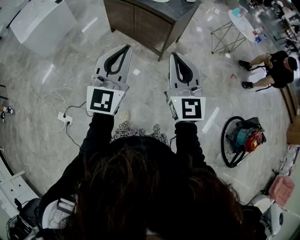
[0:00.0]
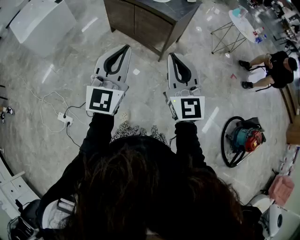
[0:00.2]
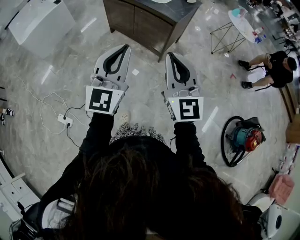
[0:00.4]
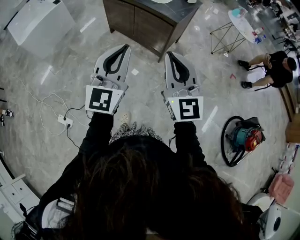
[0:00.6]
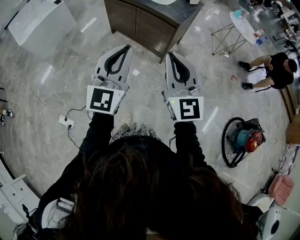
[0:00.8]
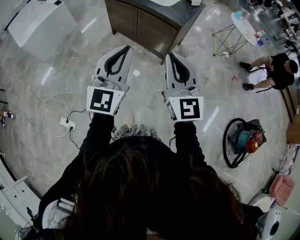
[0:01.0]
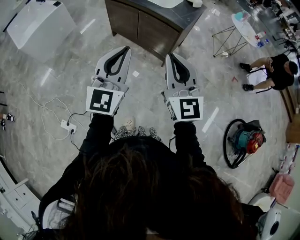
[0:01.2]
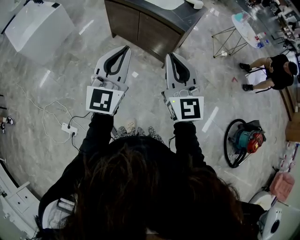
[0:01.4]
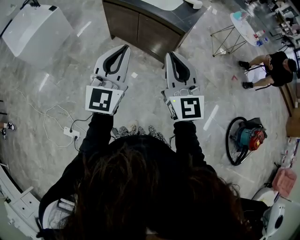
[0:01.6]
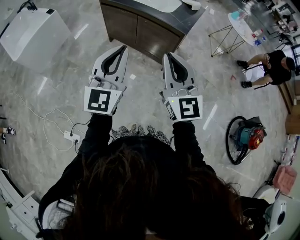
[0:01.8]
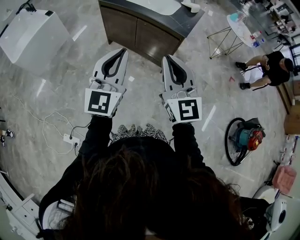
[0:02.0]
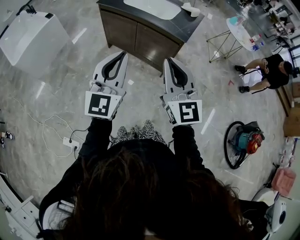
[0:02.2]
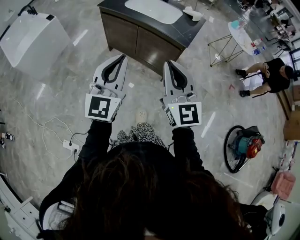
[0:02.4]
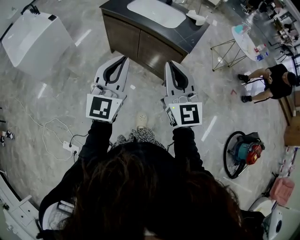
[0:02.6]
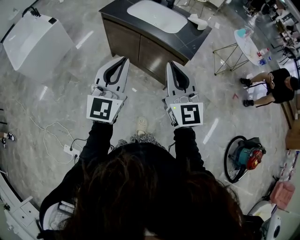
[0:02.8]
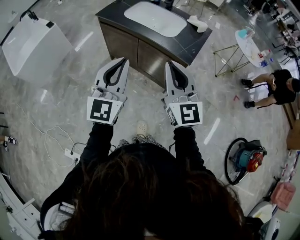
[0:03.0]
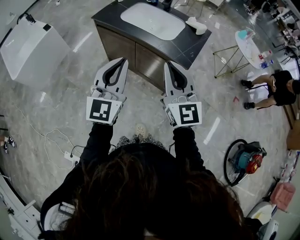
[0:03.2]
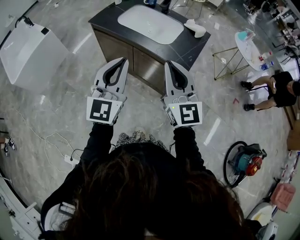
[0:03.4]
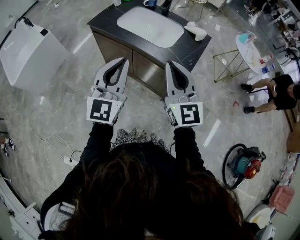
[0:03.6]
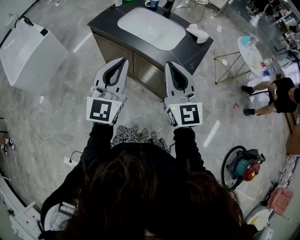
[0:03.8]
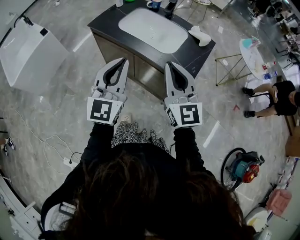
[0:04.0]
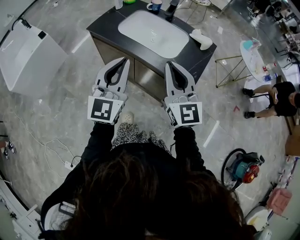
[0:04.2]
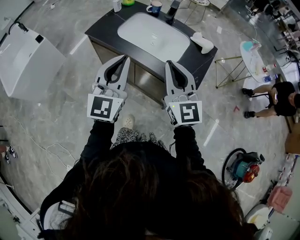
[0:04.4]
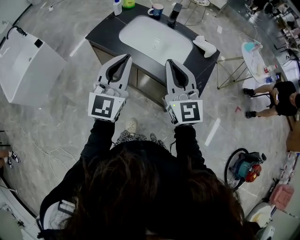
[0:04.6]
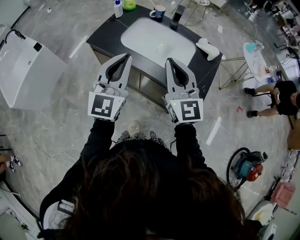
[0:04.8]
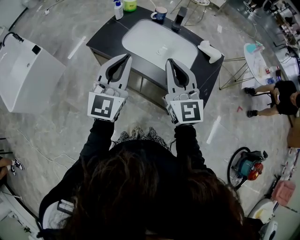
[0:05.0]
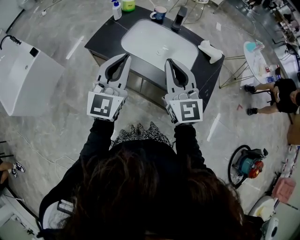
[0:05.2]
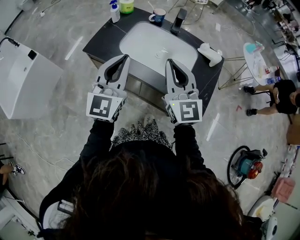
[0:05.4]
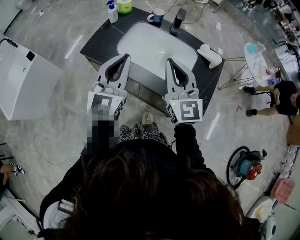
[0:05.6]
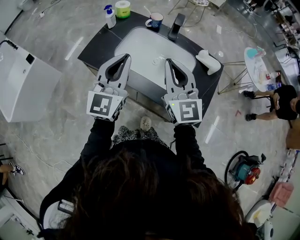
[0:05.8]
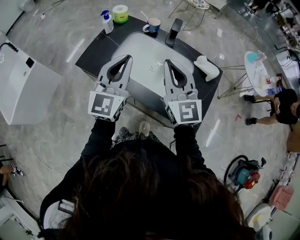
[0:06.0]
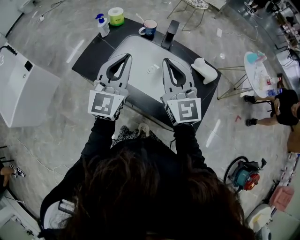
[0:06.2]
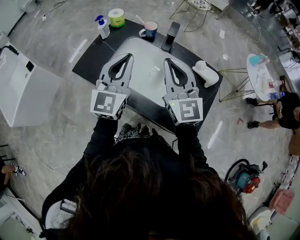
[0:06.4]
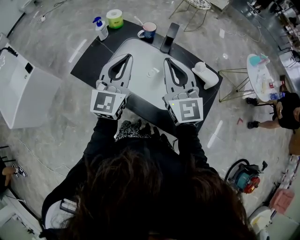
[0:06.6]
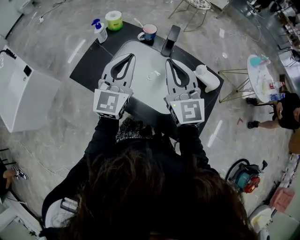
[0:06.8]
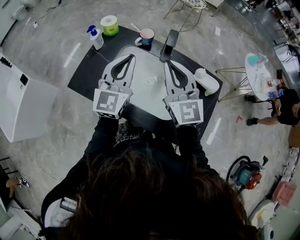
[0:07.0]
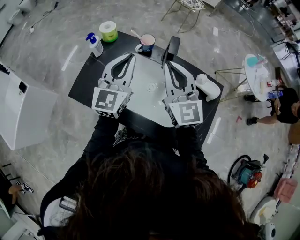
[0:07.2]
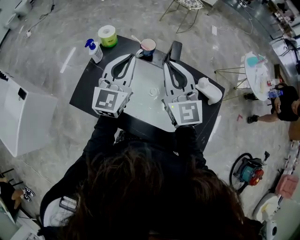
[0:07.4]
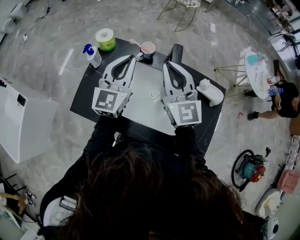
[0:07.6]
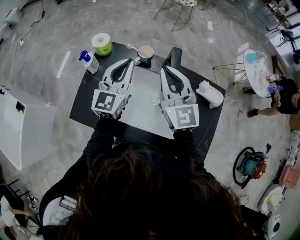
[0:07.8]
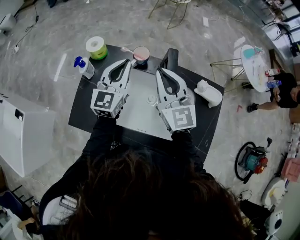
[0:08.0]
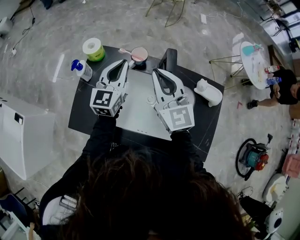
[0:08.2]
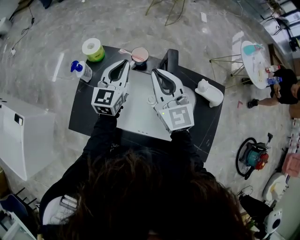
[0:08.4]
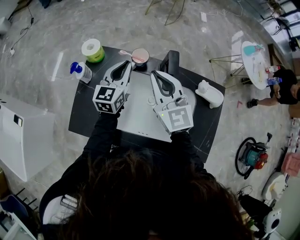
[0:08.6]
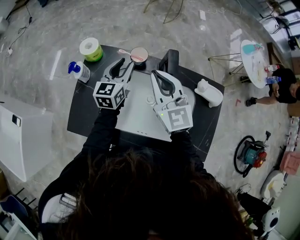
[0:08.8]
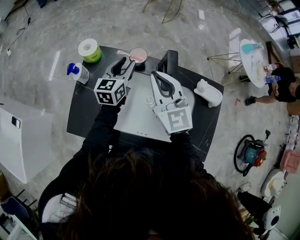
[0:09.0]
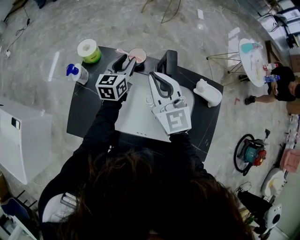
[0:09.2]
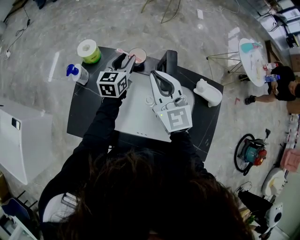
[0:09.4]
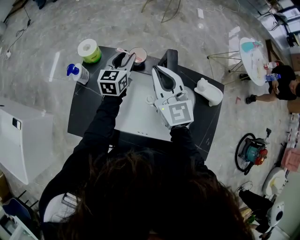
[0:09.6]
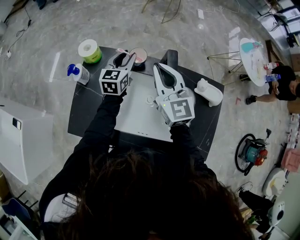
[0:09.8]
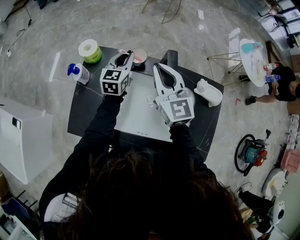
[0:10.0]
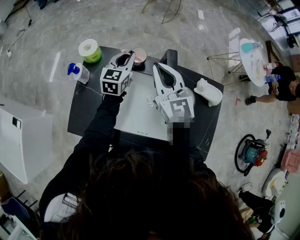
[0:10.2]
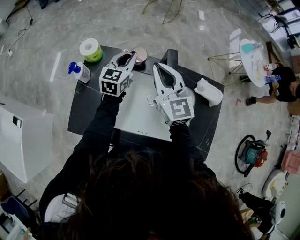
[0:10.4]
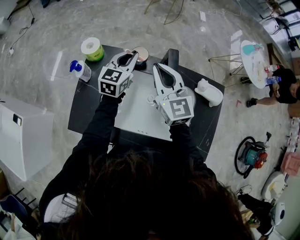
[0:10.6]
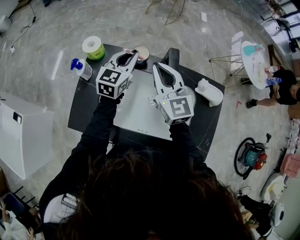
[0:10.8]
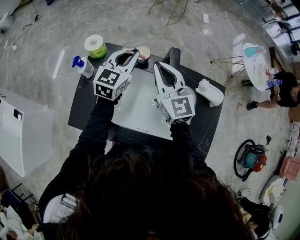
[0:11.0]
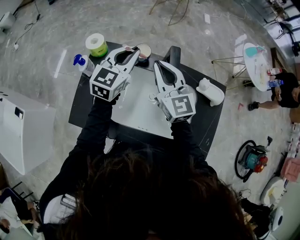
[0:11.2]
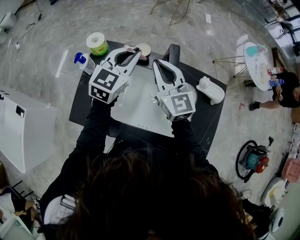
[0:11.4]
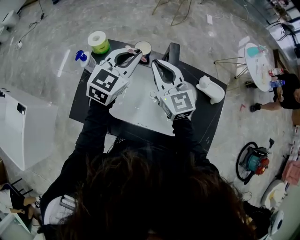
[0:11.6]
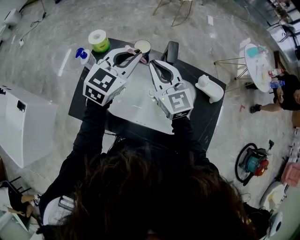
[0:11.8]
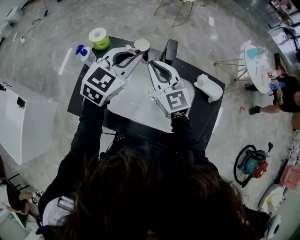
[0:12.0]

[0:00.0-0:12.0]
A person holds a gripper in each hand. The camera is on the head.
0:00.0 to 0:01.6: The right gripper travels to the left and forward by roughly 15 cm; the left gripper travels forward and to the left by about 15 cm.
0:01.6 to 0:03.0: The two grippers go approximately 20 cm forward.
0:03.0 to 0:04.4: The grippers both shift forward by approximately 25 cm.
0:04.4 to 0:06.0: Both grippers travel together forward, approximately 20 cm.
0:06.0 to 0:07.6: The grippers both shift forward by some 20 cm.
0:07.6 to 0:09.0: The left gripper is displaced downward and forward by roughly 20 cm, swivels about 30 degrees, and opens, while the right gripper moves downward, roughly 5 cm.
0:09.0 to 0:10.4: The left gripper closes its fingers.
0:10.4 to 0:12.0: The right gripper shifts roughly 5 cm backward. The left gripper moves upward and backward, about 20 cm, and changes its angle by about 20 degrees.

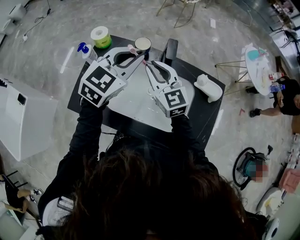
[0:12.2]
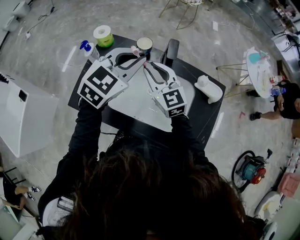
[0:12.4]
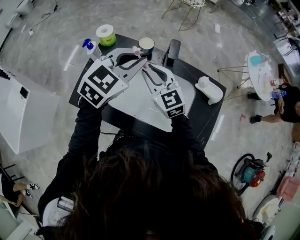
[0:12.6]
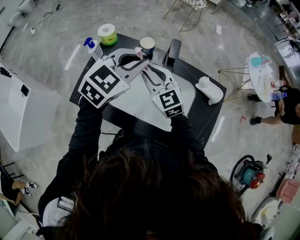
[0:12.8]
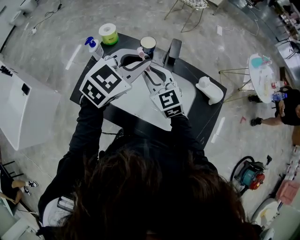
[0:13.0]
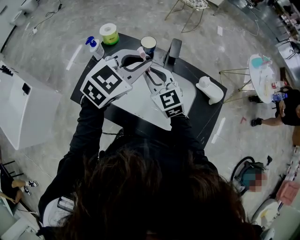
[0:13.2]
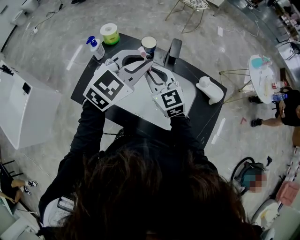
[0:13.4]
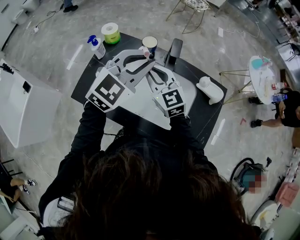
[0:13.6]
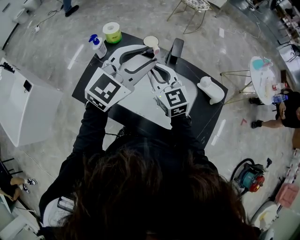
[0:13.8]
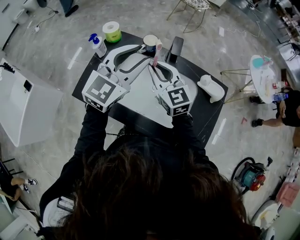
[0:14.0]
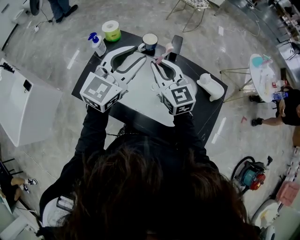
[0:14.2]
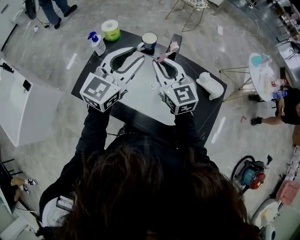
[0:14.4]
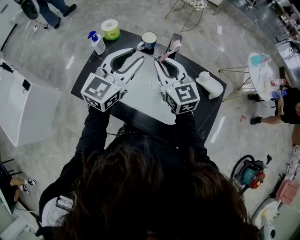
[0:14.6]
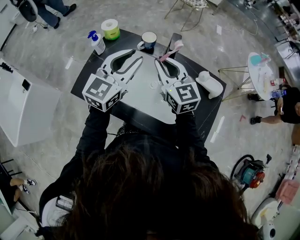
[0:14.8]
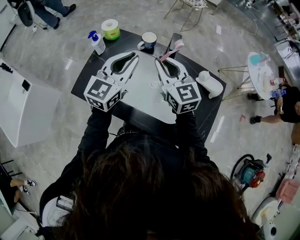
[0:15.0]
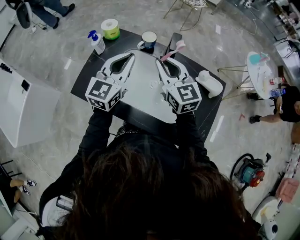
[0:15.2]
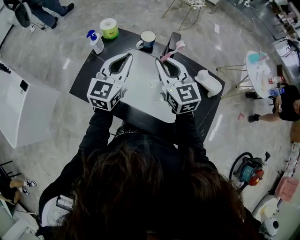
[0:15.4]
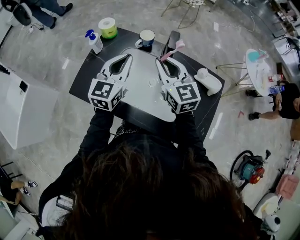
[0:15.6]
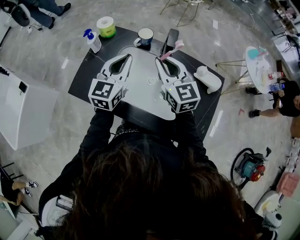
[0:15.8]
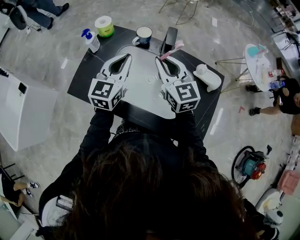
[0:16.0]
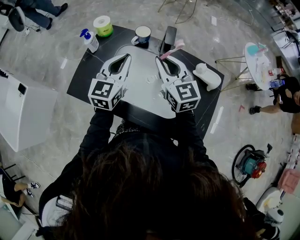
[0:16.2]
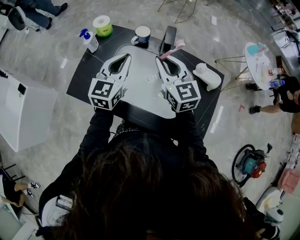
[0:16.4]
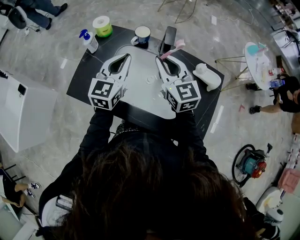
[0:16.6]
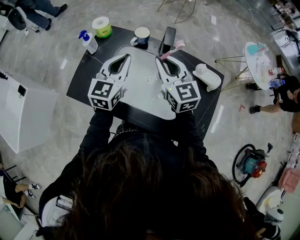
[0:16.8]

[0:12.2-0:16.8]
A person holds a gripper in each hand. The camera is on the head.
0:12.2 to 0:13.8: The left gripper is displaced backward by some 5 cm, and opens its fingers.
0:13.8 to 0:15.2: The left gripper goes about 10 cm downward and to the left, rotates about 20 degrees, and closes its fingers.
0:15.2 to 0:16.8: The grippers move only a little.

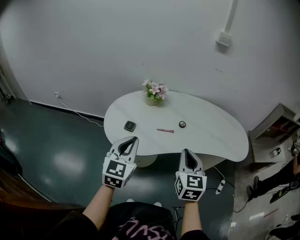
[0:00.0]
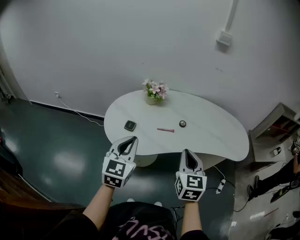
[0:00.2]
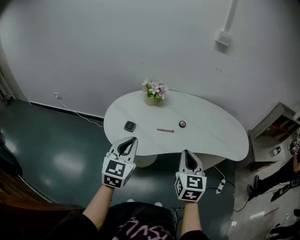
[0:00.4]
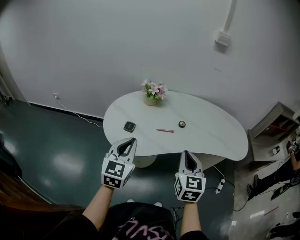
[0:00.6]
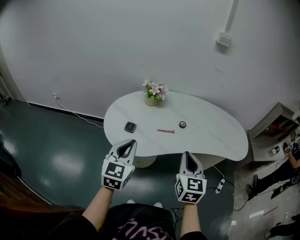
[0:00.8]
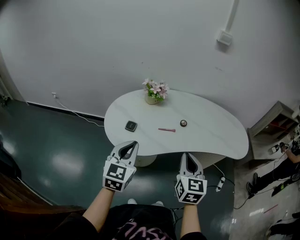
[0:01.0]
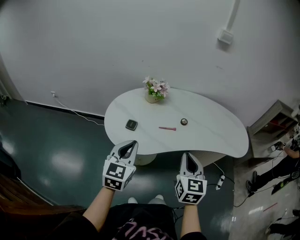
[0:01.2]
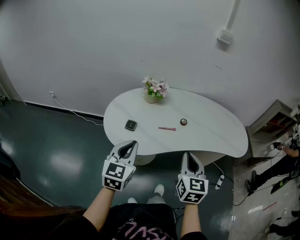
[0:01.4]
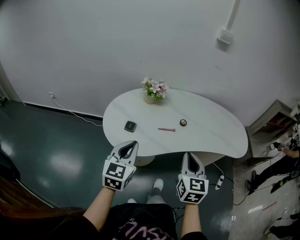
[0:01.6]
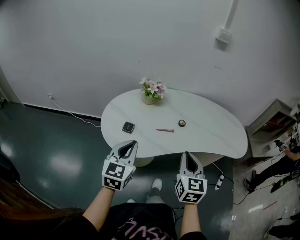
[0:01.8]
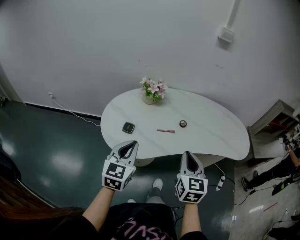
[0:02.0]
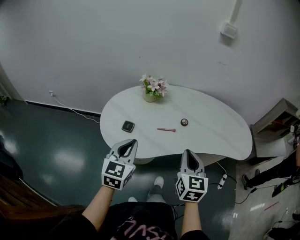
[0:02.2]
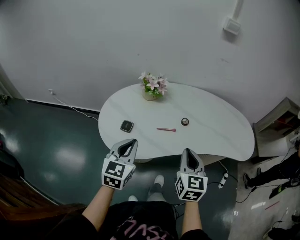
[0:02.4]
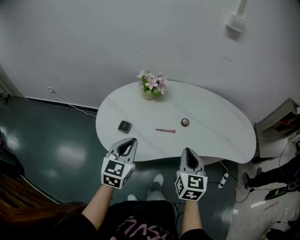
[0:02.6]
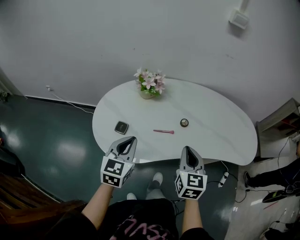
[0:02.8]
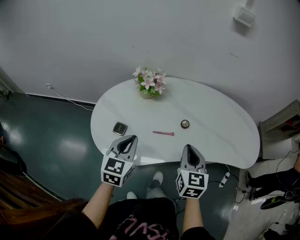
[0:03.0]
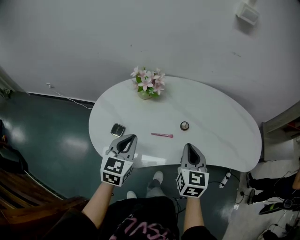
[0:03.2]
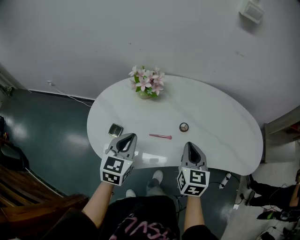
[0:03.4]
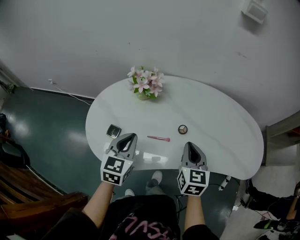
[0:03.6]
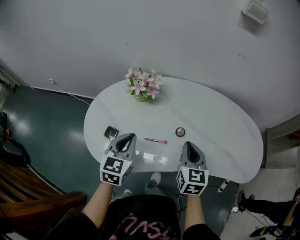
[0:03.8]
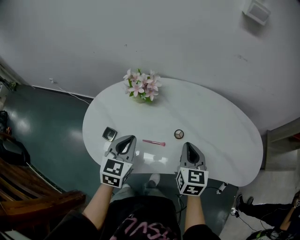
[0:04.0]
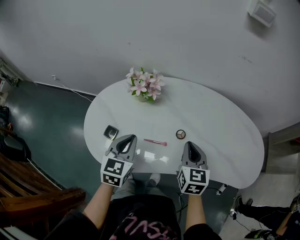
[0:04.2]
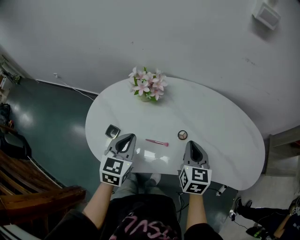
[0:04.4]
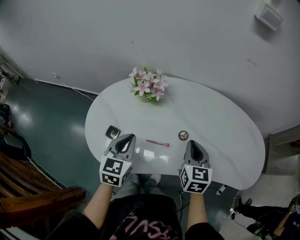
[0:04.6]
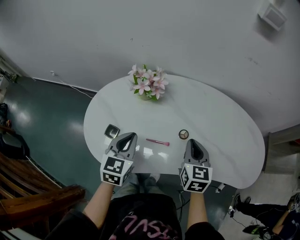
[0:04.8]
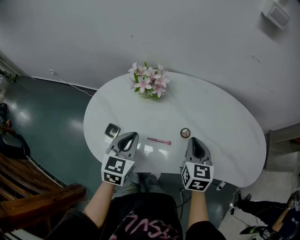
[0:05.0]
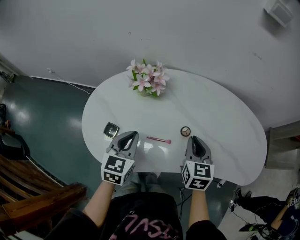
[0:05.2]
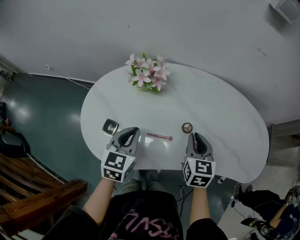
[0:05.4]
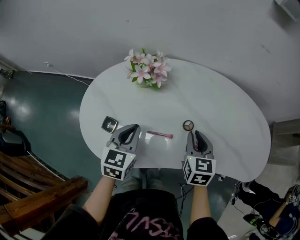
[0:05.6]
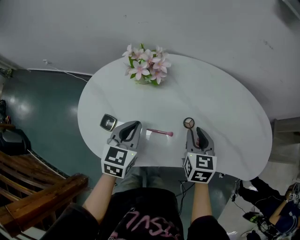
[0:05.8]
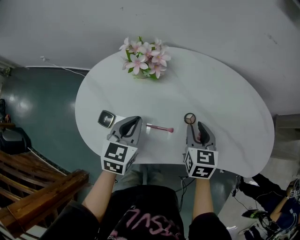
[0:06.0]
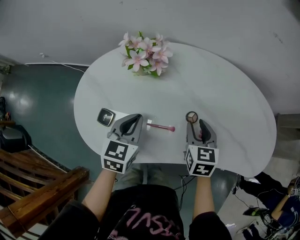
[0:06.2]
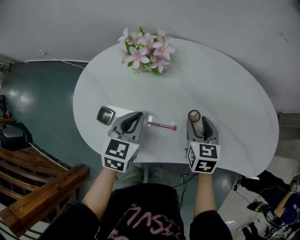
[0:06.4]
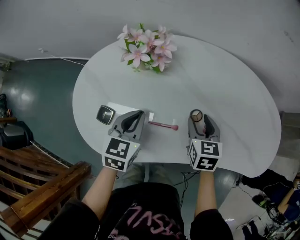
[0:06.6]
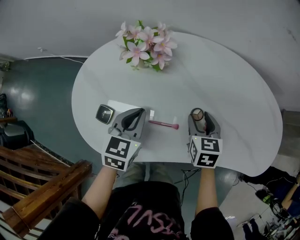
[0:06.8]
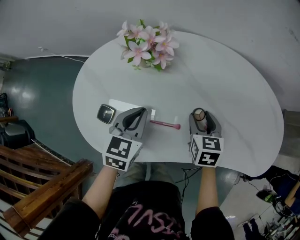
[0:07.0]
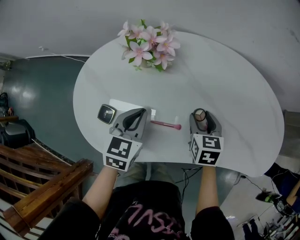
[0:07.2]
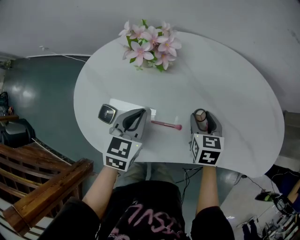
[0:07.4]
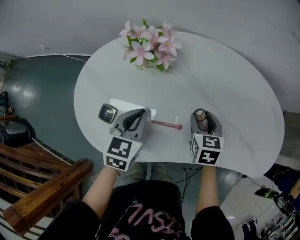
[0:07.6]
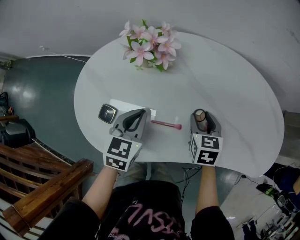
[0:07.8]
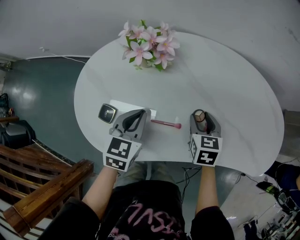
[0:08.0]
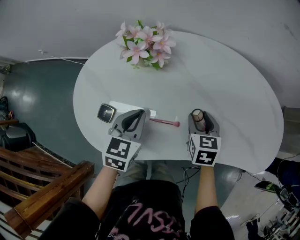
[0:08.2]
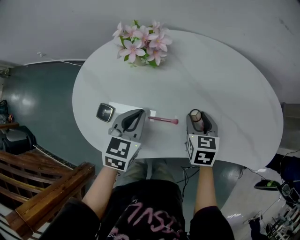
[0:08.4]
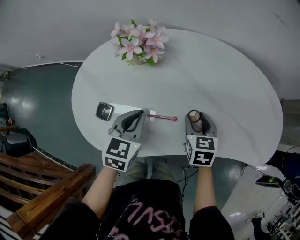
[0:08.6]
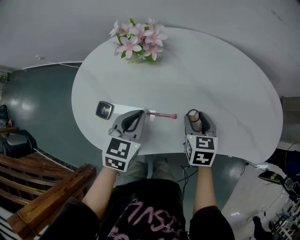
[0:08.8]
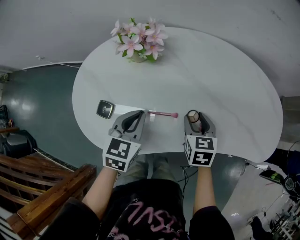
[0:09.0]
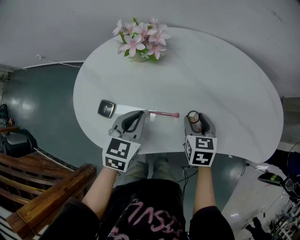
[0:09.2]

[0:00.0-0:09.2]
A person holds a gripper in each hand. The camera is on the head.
0:00.0 to 0:01.6: There are only small adjustments of the grippers.
0:01.6 to 0:03.0: The two grippers go approximately 15 cm forward and downward.
0:03.0 to 0:04.6: The left gripper goes about 5 cm forward; the right gripper goes roughly 10 cm forward.
0:04.6 to 0:06.2: Both grippers travel together downward, roughly 10 cm. The right gripper opens its fingers.
0:06.2 to 0:07.6: The right gripper heads downward, covering some 5 cm.
0:07.6 to 0:09.2: The right gripper travels backward by about 5 cm.
